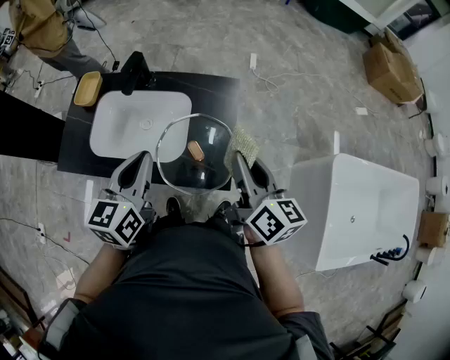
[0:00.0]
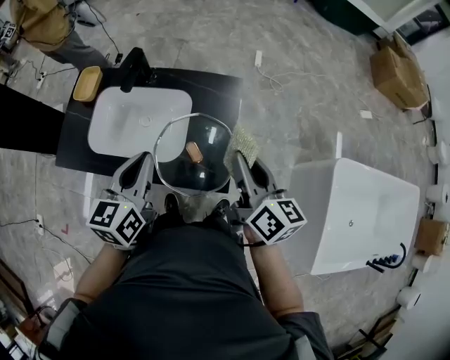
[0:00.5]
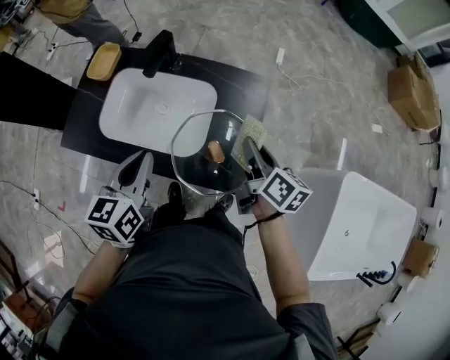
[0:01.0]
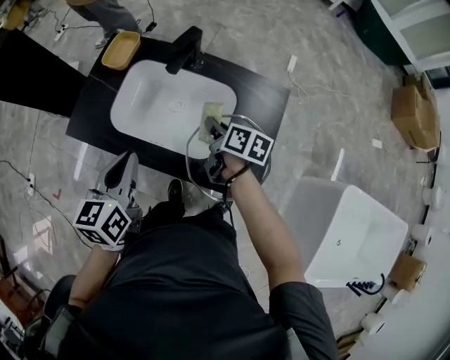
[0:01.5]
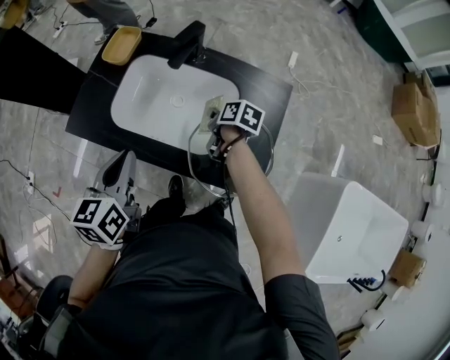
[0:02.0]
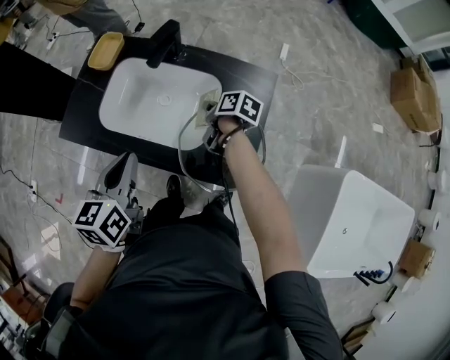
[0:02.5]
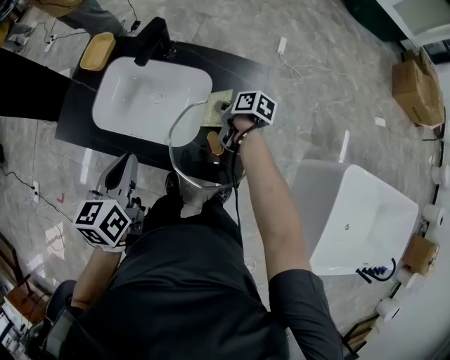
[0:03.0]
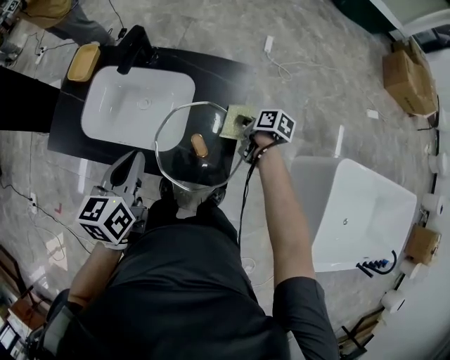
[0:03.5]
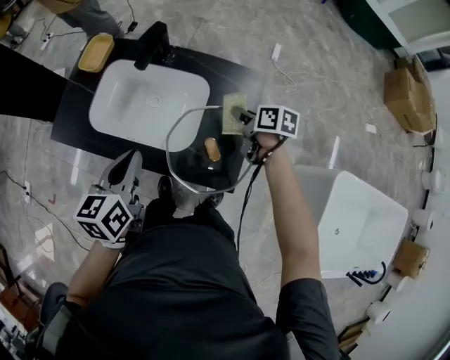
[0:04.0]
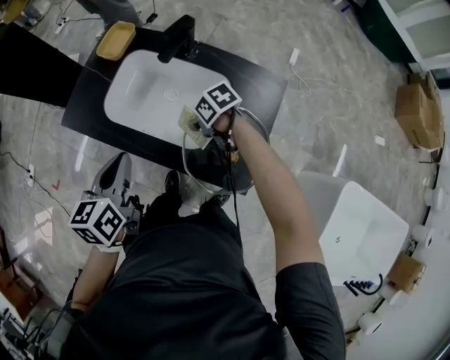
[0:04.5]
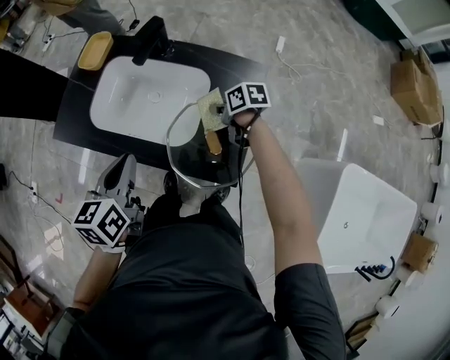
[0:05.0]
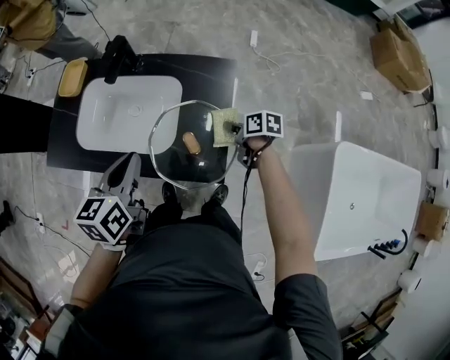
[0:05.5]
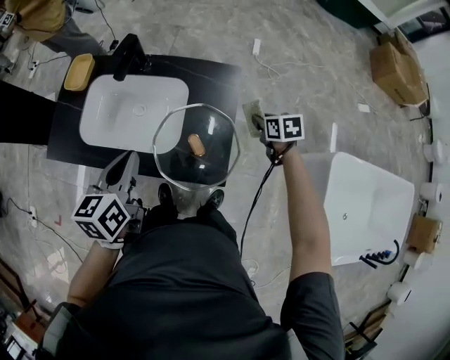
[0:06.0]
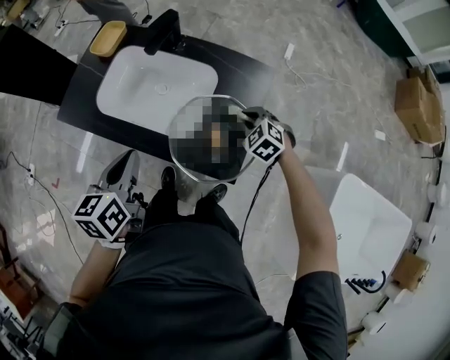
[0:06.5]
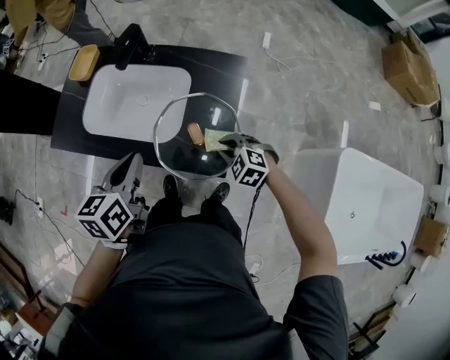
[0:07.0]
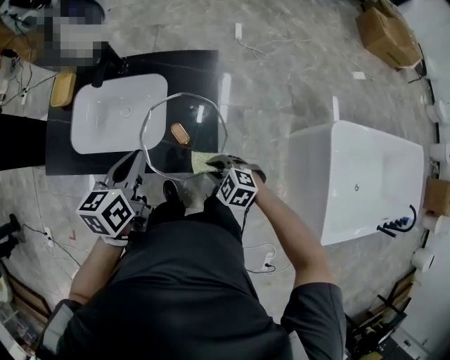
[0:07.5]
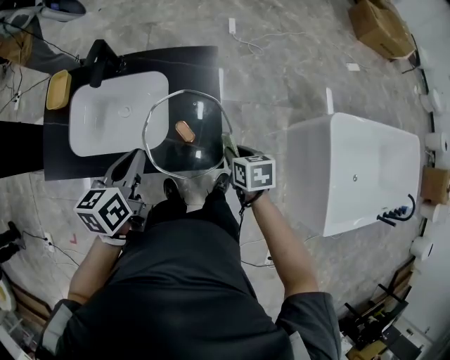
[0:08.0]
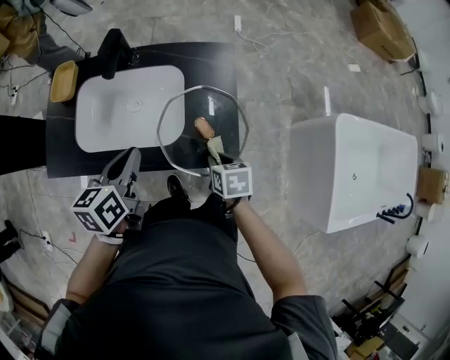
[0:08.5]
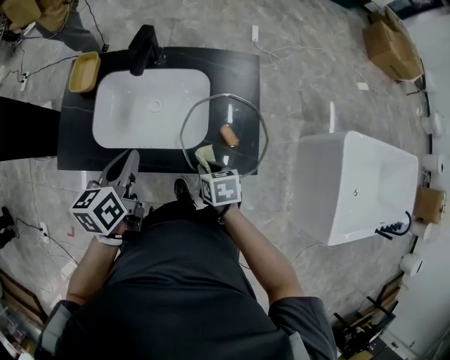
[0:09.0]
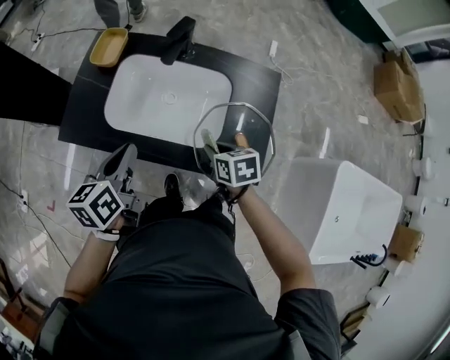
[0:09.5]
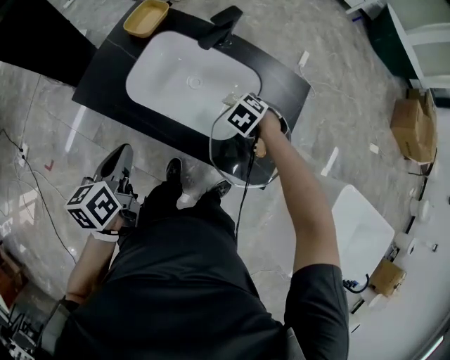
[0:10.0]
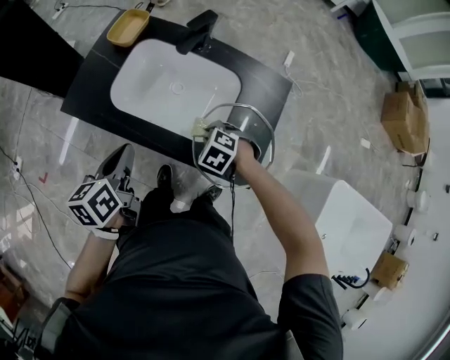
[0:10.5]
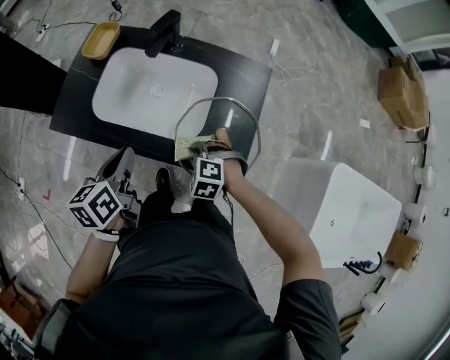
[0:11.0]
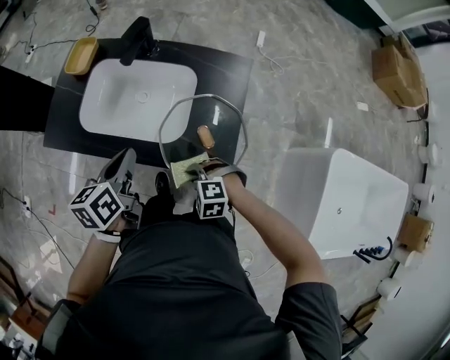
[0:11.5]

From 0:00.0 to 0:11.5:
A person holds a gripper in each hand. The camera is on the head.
From 0:00.0 to 0:02.0: The right gripper moves downward, forward and to the left, about 40 cm, and angles its fingers downward, by roughly 40 degrees; the left gripper is displaced to the left and downward by approximately 20 cm, and swivels some 20 degrees.
From 0:02.0 to 0:04.0: The right gripper moves to the right, approximately 15 cm; the left gripper is displaced to the right by roughly 10 cm.
From 0:04.0 to 0:06.0: The right gripper shifts by about 15 cm, and turns by some 30 degrees.
From 0:06.0 to 0:07.5: The right gripper moves to the left and backward, about 25 cm, and rolls counterclockwise, seen from behind, by about 50 degrees. Meanwhile the left gripper moves to the right, about 5 cm.
From 0:07.5 to 0:09.5: The left gripper shifts some 25 cm to the left; the right gripper travels to the left and forward by some 20 cm, and rotates around the line of its fingers by about 50 degrees, clockwise from behind.
From 0:09.5 to 0:11.5: The right gripper ends up roughly 15 cm from where it was, and twists some 80 degrees counterclockwise, seen from behind; the left gripper shifts by about 10 cm.

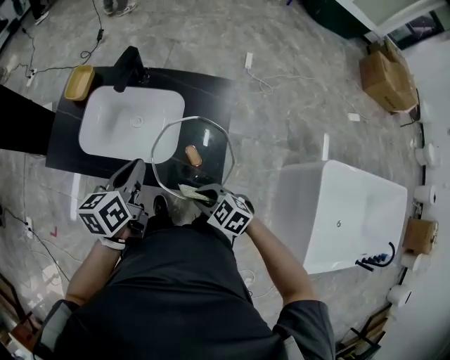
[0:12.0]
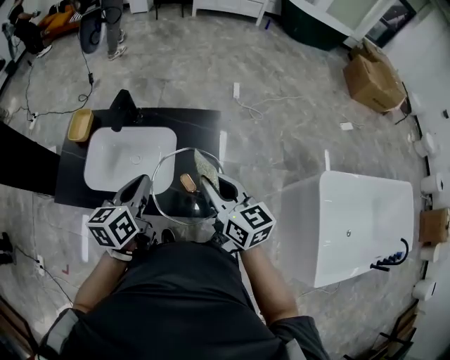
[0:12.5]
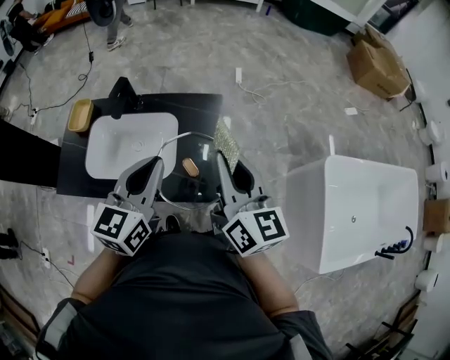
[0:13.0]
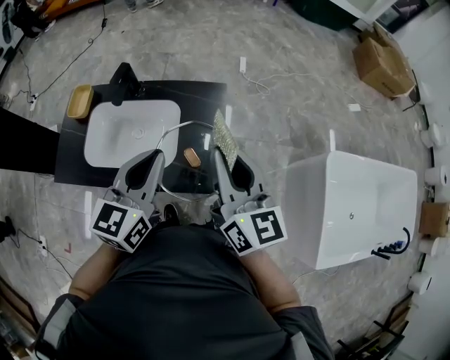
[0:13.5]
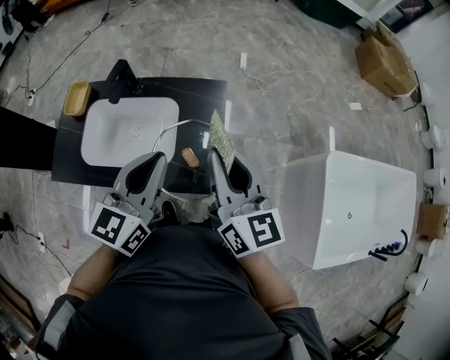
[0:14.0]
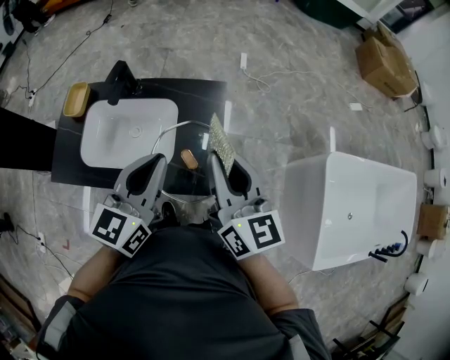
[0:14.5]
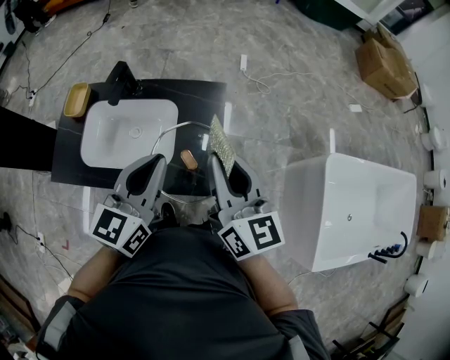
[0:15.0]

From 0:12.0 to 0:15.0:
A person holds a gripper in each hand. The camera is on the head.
From 0:12.0 to 0:13.5: The right gripper heads upward, covering some 30 cm, and points its fingers roughly 50 degrees further upward; the left gripper heads upward, covering some 15 cm, and rotates some 30 degrees.
From 0:13.5 to 0:15.0: The grippers move only a little.

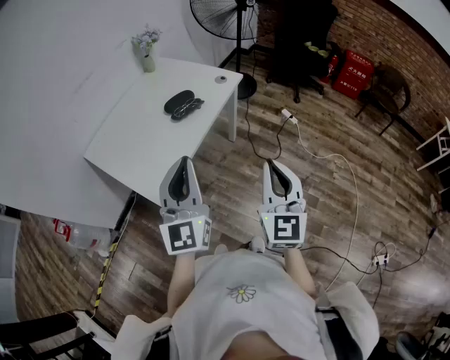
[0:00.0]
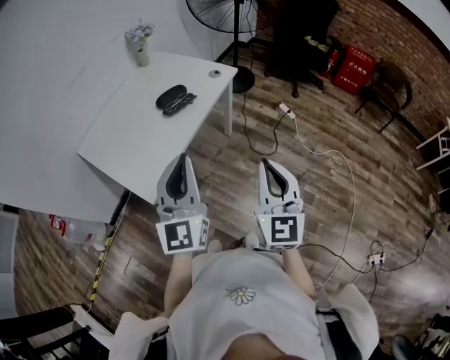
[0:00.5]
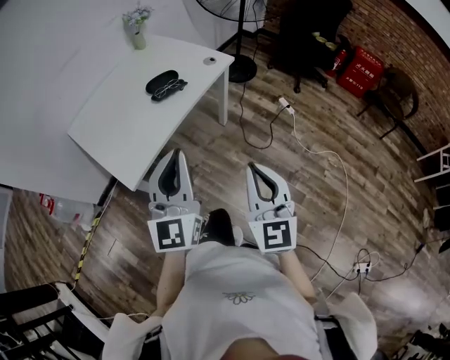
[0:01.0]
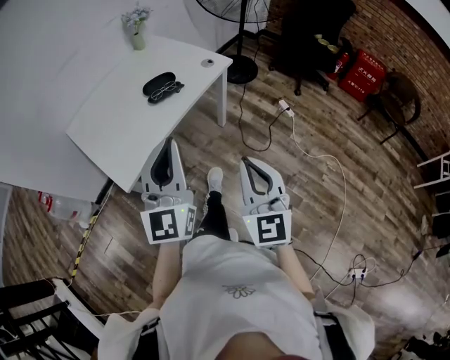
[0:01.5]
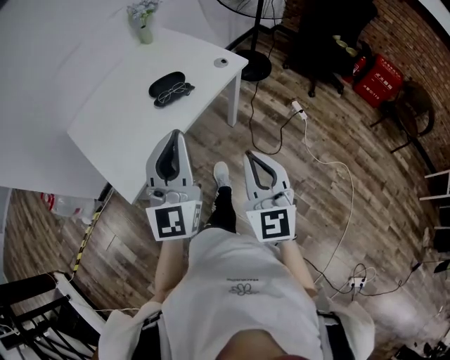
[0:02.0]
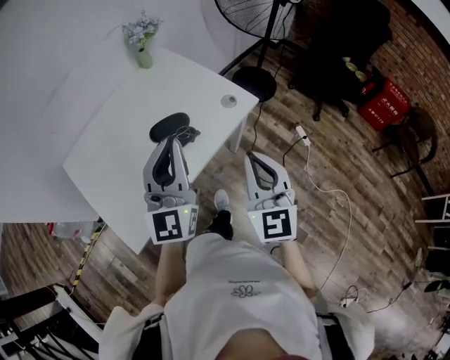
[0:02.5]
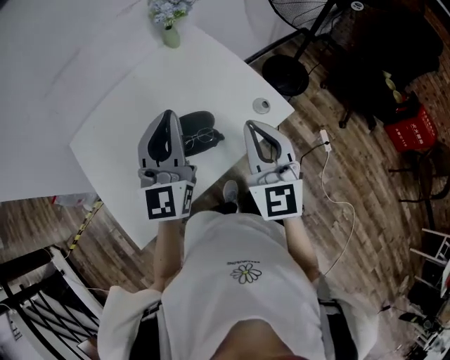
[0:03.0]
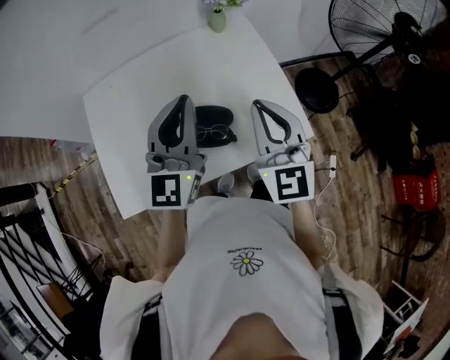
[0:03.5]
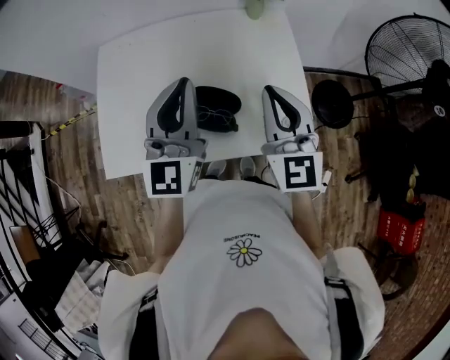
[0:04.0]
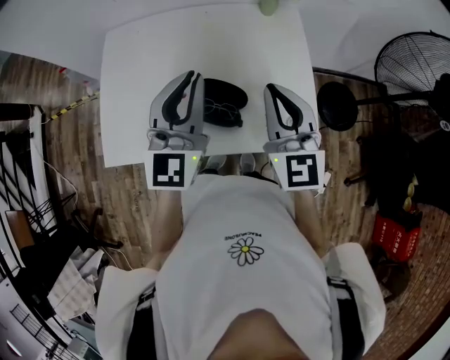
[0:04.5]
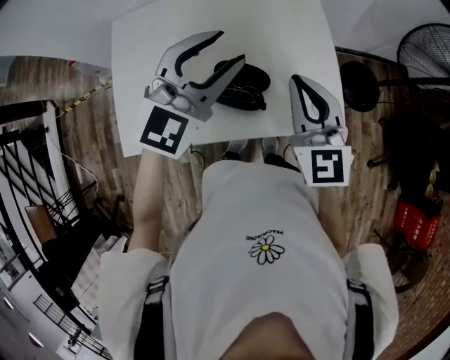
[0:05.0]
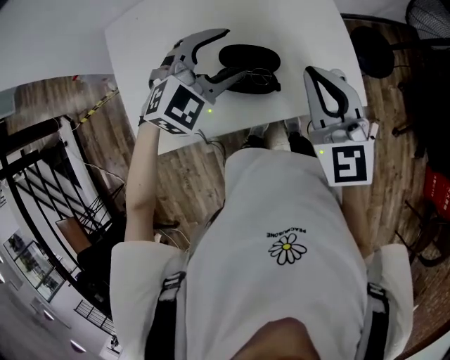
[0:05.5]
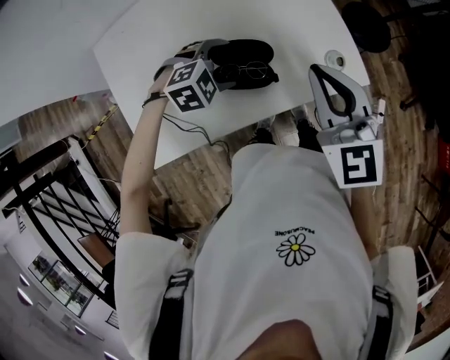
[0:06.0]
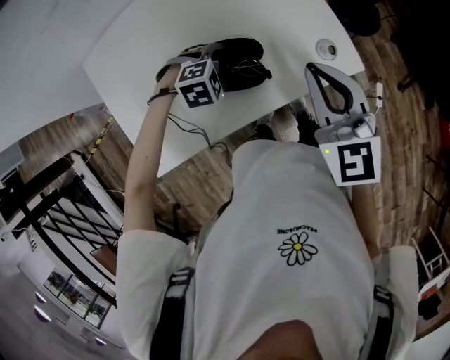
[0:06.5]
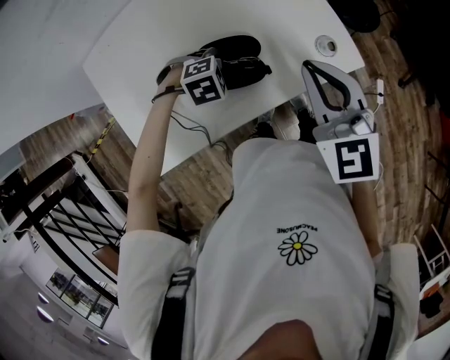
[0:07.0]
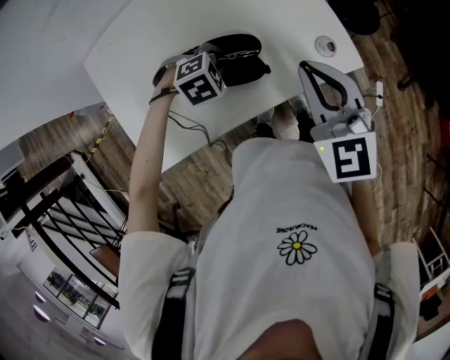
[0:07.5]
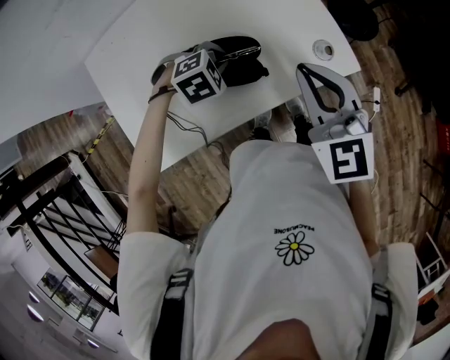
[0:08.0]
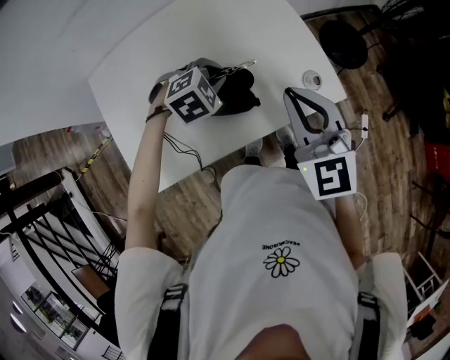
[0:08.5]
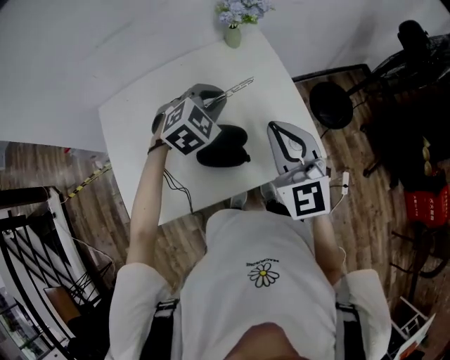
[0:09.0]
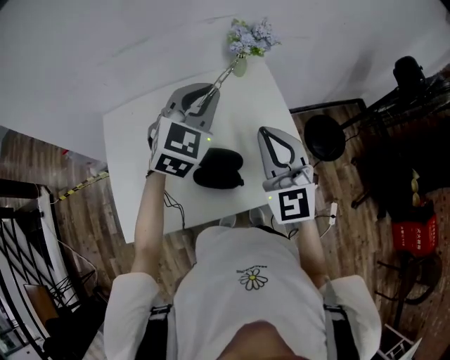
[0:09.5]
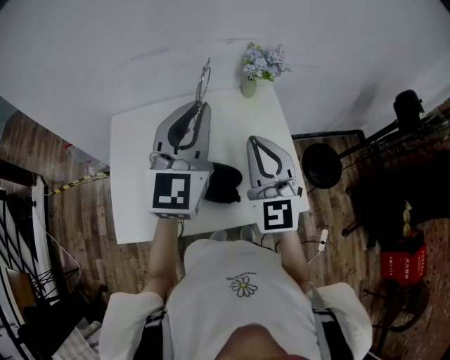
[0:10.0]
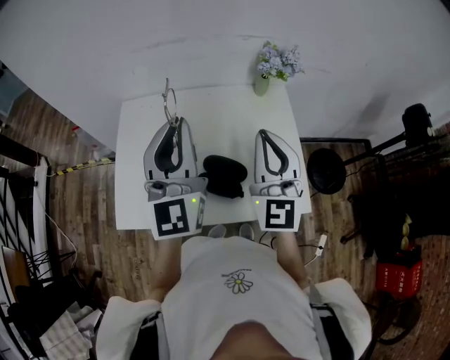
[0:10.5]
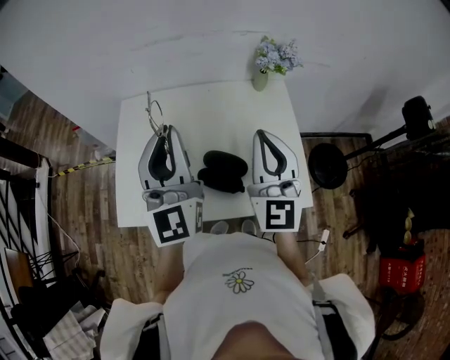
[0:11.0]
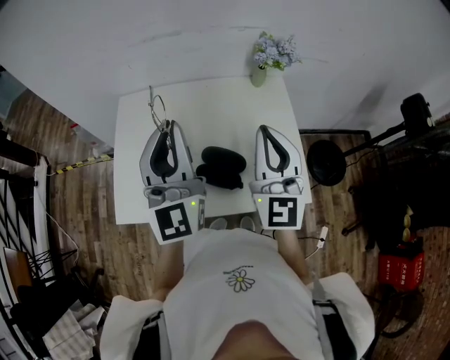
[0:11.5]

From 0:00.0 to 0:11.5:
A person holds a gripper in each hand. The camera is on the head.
From 0:00.0 to 0:02.0: The right gripper heads forward, downward and to the right, covering approximately 15 cm, and turns by approximately 20 degrees. Meanwhile the left gripper shifts about 15 cm forward and to the right.
From 0:02.0 to 0:04.0: The left gripper moves about 35 cm, and swivels some 40 degrees; the right gripper shifts by approximately 50 cm, and swivels about 40 degrees.
From 0:04.0 to 0:06.0: The right gripper is displaced downward by some 5 cm. The left gripper goes approximately 25 cm downward, angles its fingers downward, by about 70 degrees, and opens.
From 0:06.0 to 0:07.5: The left gripper closes.
From 0:07.5 to 0:09.5: The left gripper is displaced upward by some 30 cm, and points its fingers roughly 60 degrees further upward. Meanwhile the right gripper is displaced upward and forward by some 15 cm, and changes its angle by some 20 degrees.
From 0:09.5 to 0:11.5: The right gripper shifts about 5 cm upward, and rotates some 30 degrees, while the left gripper heads to the left, backward and upward, covering approximately 20 cm, and points its fingers some 40 degrees further upward.
